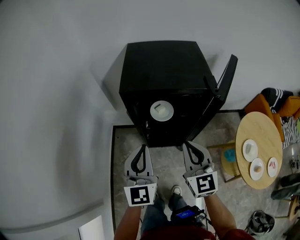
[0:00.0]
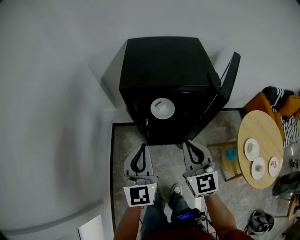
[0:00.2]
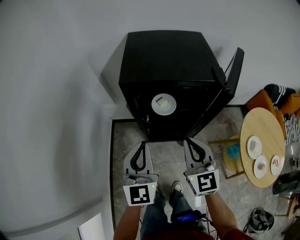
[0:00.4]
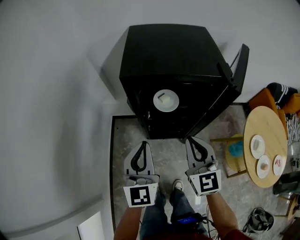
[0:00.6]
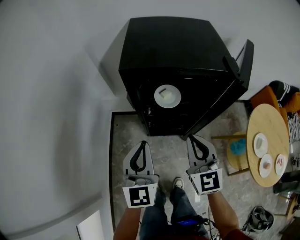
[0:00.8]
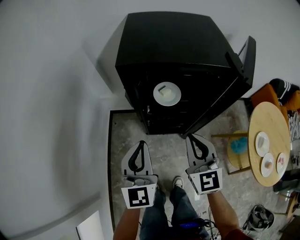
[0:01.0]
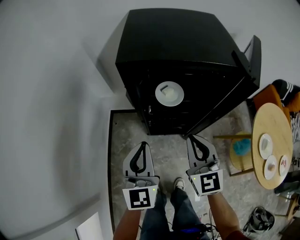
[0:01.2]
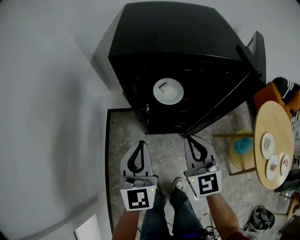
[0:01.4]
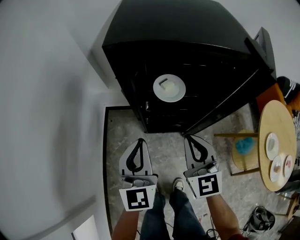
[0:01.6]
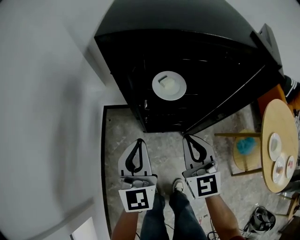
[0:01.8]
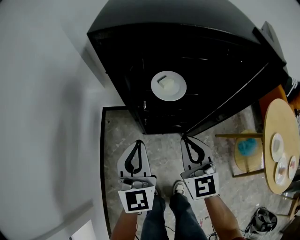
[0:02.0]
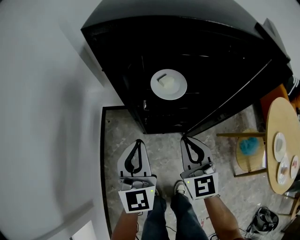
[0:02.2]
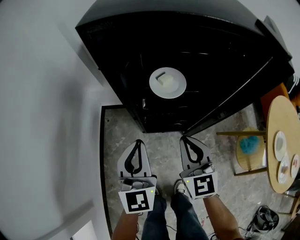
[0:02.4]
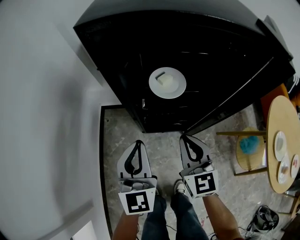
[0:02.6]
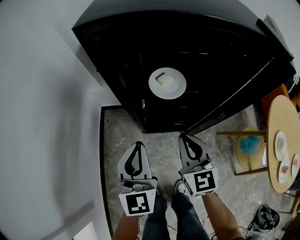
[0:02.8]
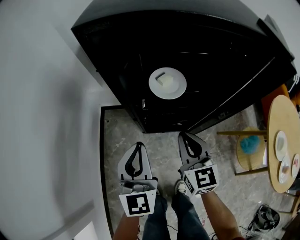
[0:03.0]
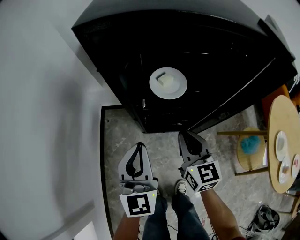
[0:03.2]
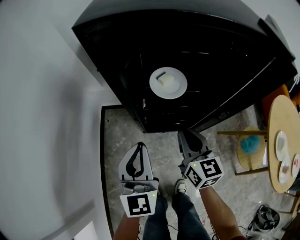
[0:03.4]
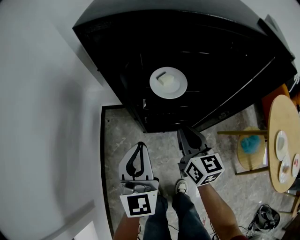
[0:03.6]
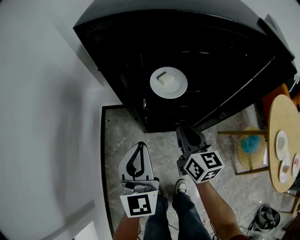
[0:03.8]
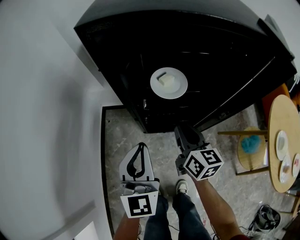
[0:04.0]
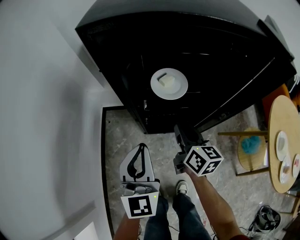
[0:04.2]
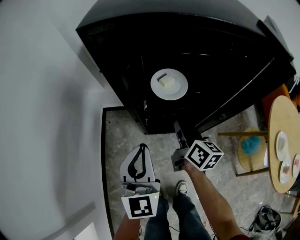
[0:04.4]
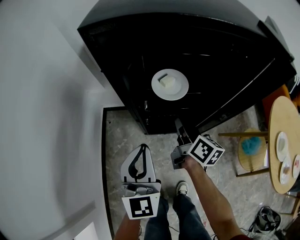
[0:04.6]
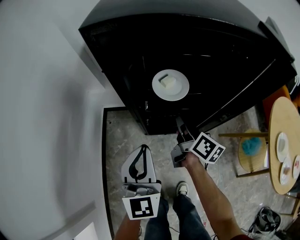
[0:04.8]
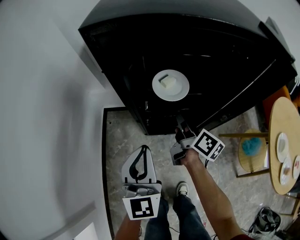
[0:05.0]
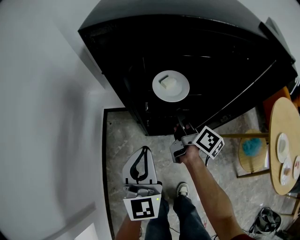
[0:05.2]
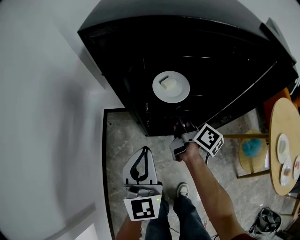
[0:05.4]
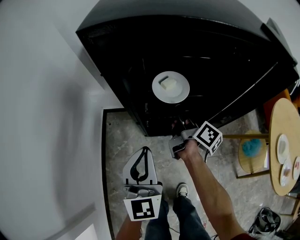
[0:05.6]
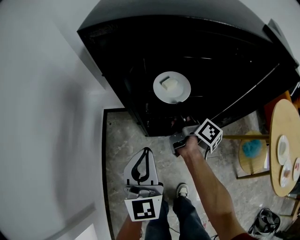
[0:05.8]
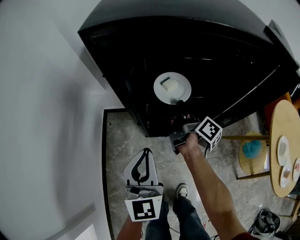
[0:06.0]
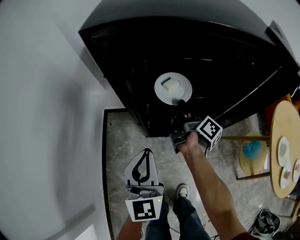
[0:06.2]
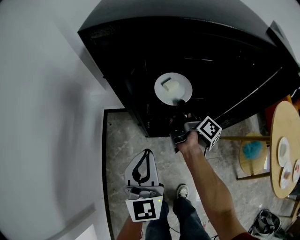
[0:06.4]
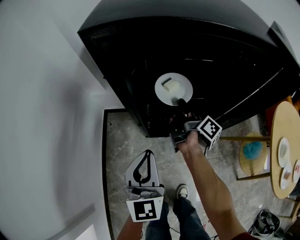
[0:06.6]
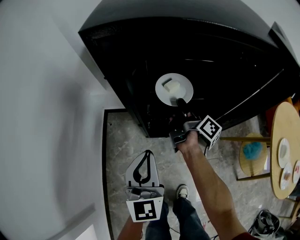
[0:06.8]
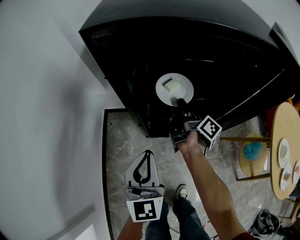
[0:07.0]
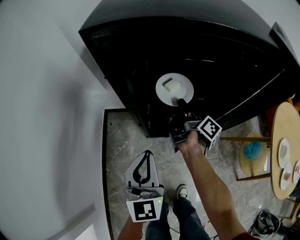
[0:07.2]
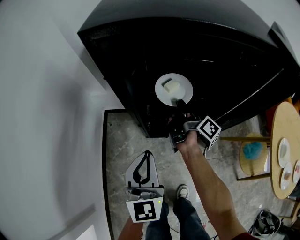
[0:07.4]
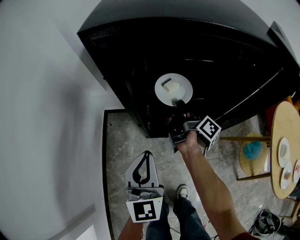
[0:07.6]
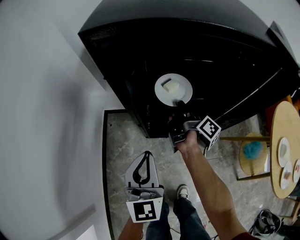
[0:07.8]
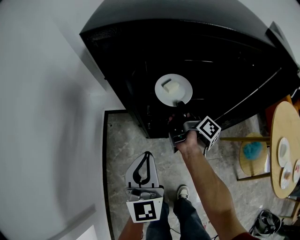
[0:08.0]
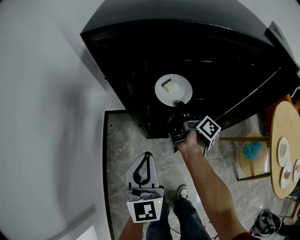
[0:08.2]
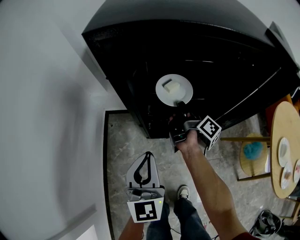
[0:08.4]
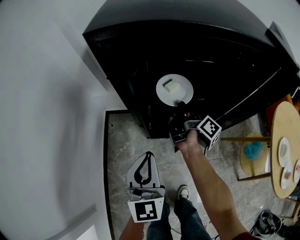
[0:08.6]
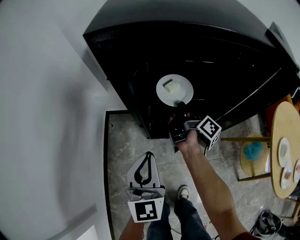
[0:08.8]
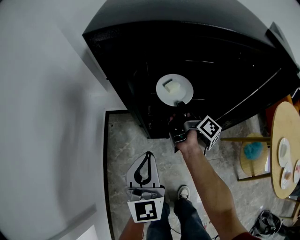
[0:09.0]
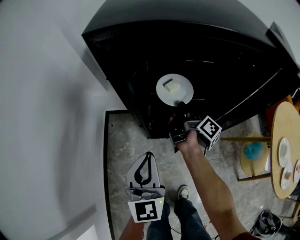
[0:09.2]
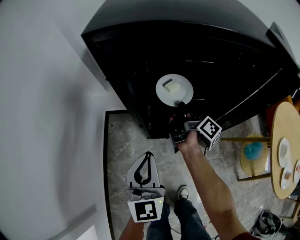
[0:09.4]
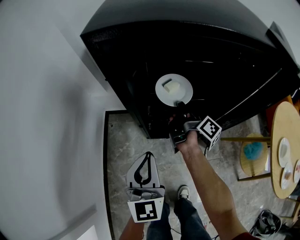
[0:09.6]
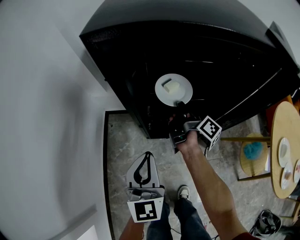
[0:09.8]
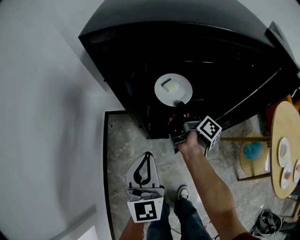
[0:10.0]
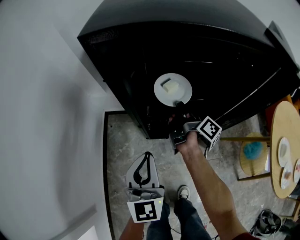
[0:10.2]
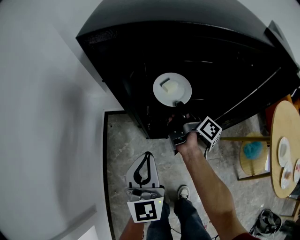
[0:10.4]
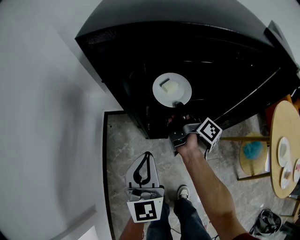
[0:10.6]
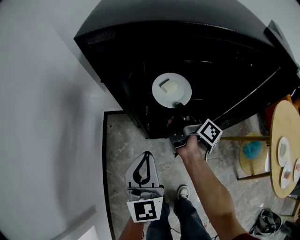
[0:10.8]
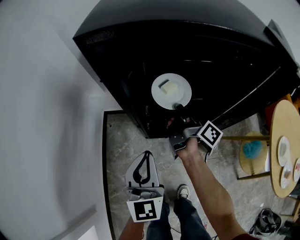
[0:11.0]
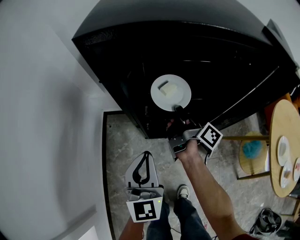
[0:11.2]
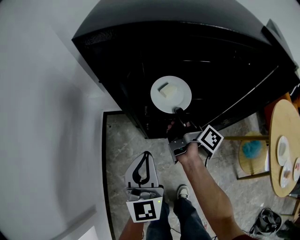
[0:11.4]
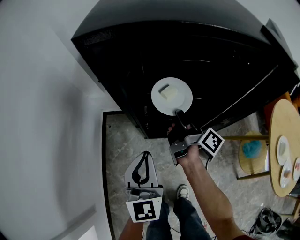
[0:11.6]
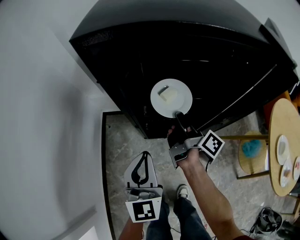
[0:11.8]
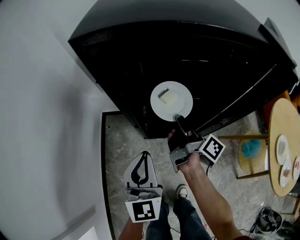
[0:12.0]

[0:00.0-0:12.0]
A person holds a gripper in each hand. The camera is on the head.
0:00.0 to 0:01.6: The grippers both shift downward by approximately 15 cm.
0:01.6 to 0:03.0: The right gripper moves downward, some 10 cm, while the left gripper goes approximately 5 cm downward.
0:03.0 to 0:04.4: The right gripper heads forward, covering about 5 cm, and rotates around the line of its fingers by approximately 40 degrees, clockwise from behind.
0:04.4 to 0:06.0: The right gripper is displaced forward by some 10 cm, and rotates some 40 degrees.
0:06.0 to 0:07.6: The grippers move only a little.
0:07.6 to 0:09.0: Both grippers stay about where they are.
0:09.0 to 0:10.4: The grippers make only small movements.
0:10.4 to 0:12.0: The right gripper travels backward by approximately 5 cm.

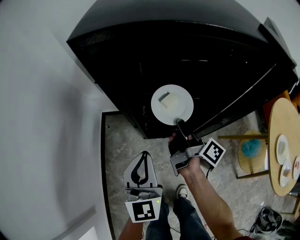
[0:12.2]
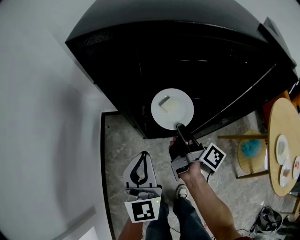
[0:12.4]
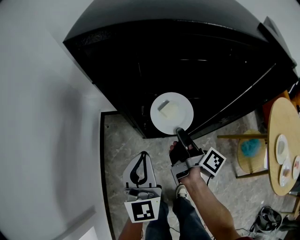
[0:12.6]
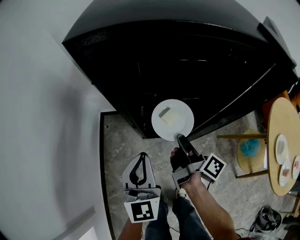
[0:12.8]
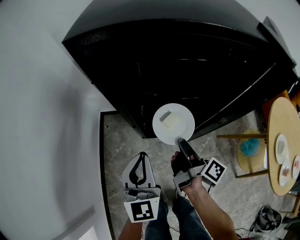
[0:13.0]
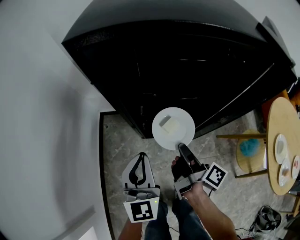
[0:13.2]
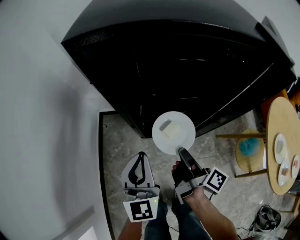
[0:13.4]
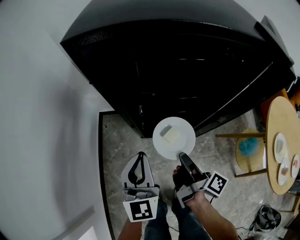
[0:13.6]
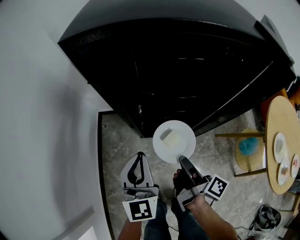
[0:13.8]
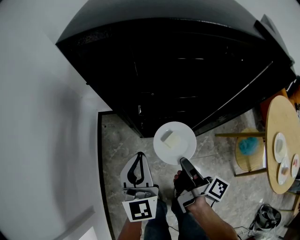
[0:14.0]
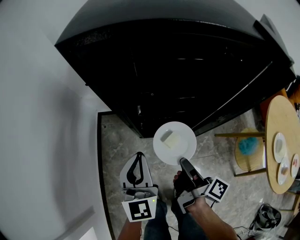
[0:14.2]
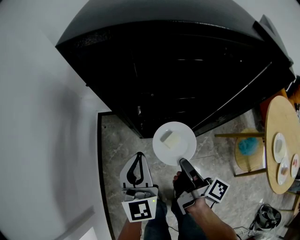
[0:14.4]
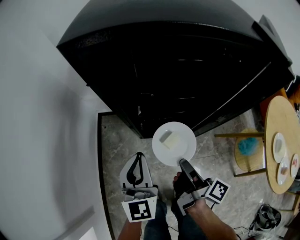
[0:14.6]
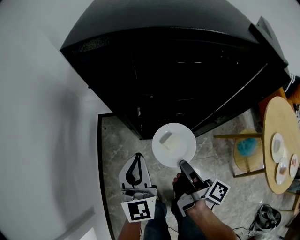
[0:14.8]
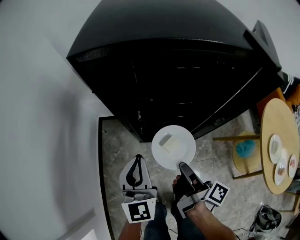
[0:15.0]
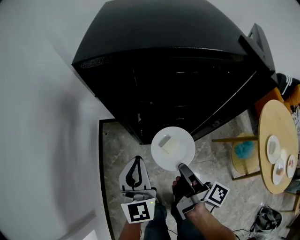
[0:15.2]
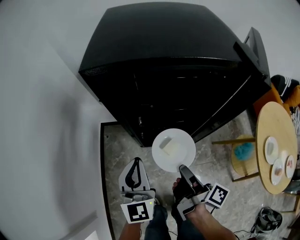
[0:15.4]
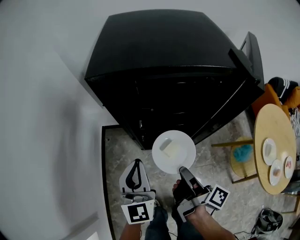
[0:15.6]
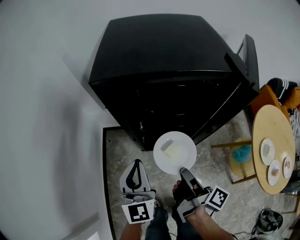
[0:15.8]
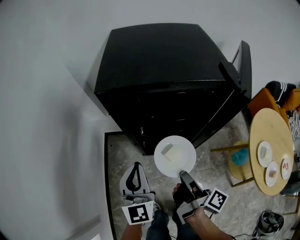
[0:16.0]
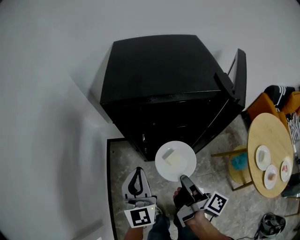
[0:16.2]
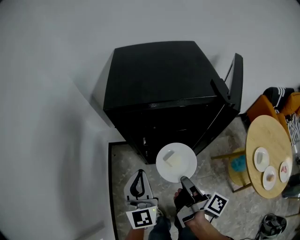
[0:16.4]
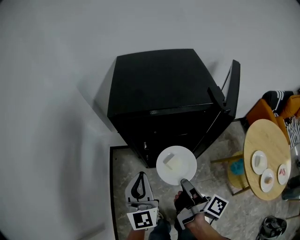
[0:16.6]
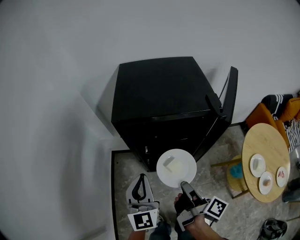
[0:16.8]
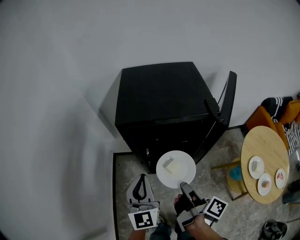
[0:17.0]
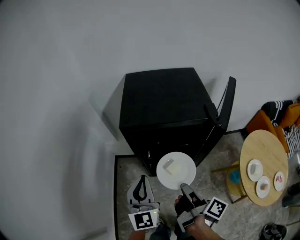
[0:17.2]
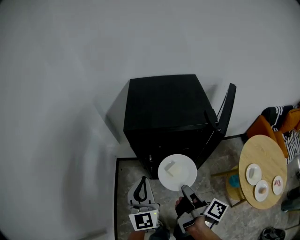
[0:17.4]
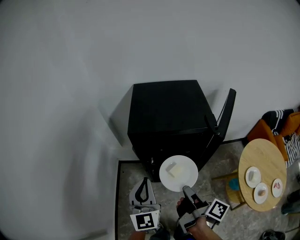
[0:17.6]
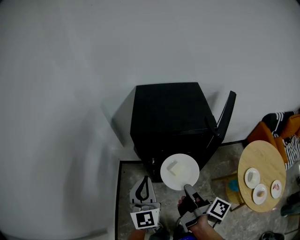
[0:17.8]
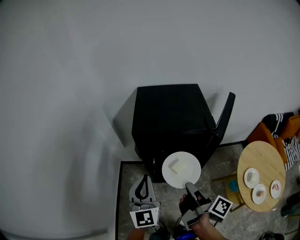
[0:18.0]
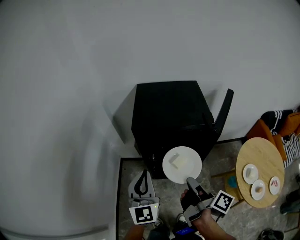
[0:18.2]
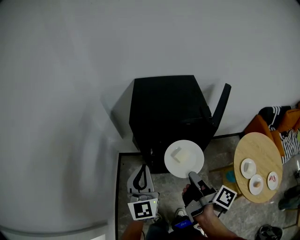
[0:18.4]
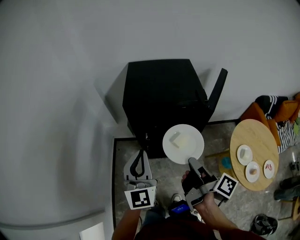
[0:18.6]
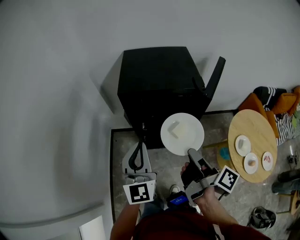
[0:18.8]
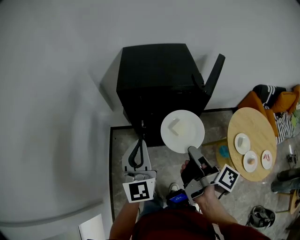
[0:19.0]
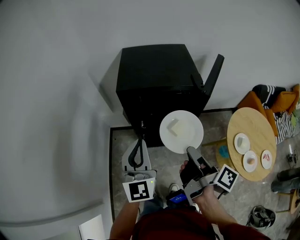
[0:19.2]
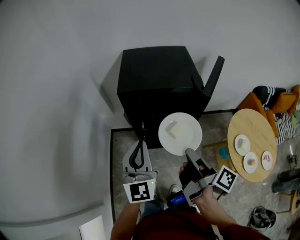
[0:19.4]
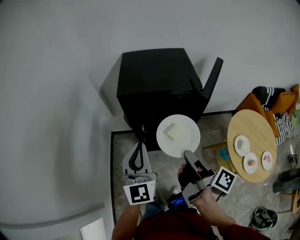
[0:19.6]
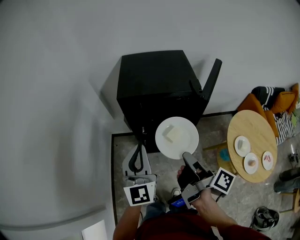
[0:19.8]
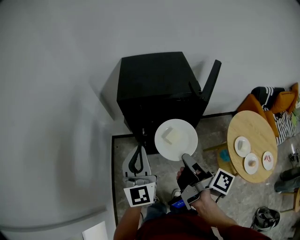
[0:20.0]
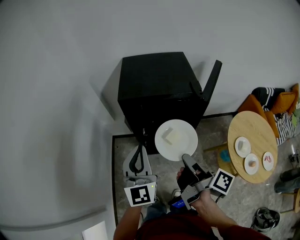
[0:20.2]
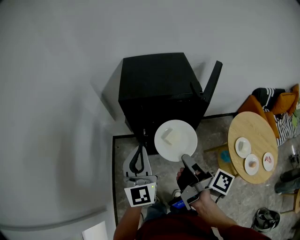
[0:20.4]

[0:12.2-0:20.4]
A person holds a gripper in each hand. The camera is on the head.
0:12.2 to 0:13.8: The right gripper goes about 15 cm backward.
0:13.8 to 0:15.4: Both grippers move upward, roughly 5 cm.
0:15.4 to 0:17.2: The two grippers go roughly 20 cm upward.
0:17.2 to 0:18.8: The grippers both shift upward and backward by roughly 10 cm.
0:18.8 to 0:20.4: The grippers move only a little.

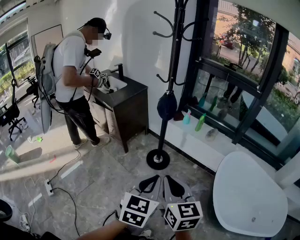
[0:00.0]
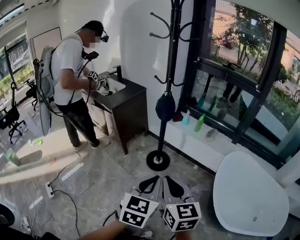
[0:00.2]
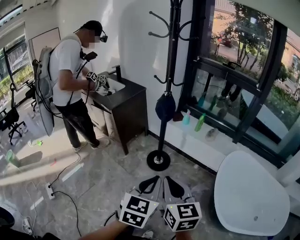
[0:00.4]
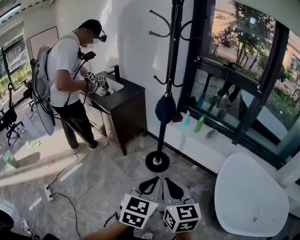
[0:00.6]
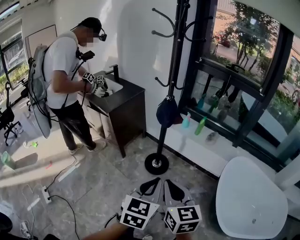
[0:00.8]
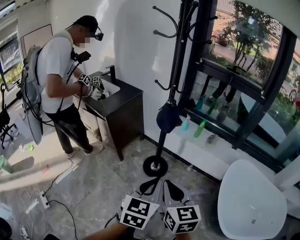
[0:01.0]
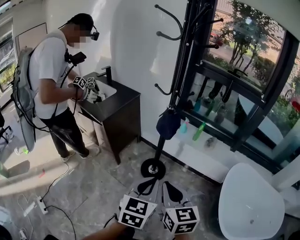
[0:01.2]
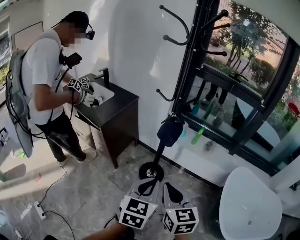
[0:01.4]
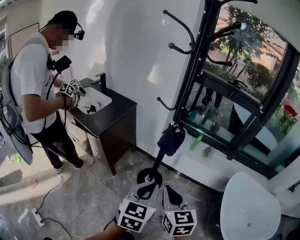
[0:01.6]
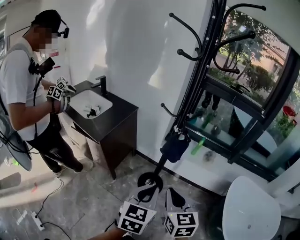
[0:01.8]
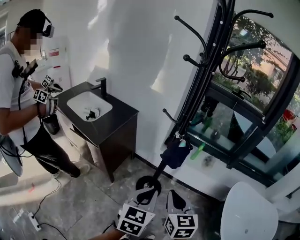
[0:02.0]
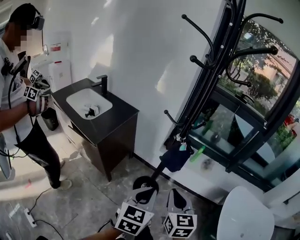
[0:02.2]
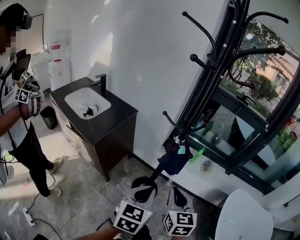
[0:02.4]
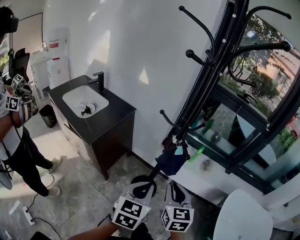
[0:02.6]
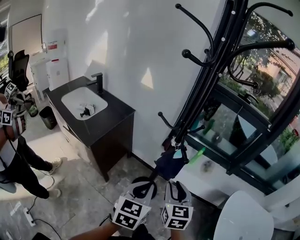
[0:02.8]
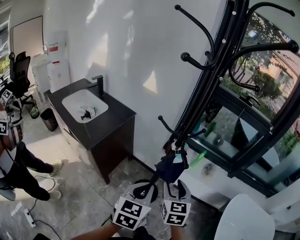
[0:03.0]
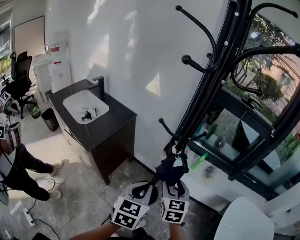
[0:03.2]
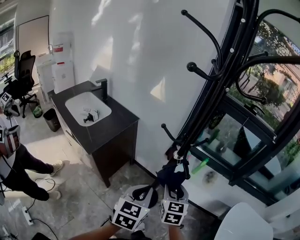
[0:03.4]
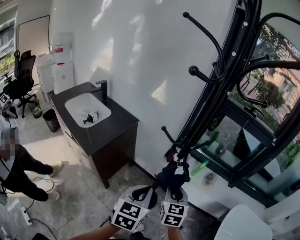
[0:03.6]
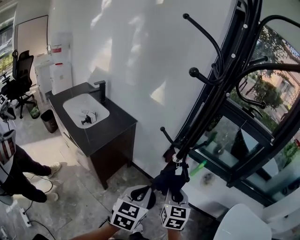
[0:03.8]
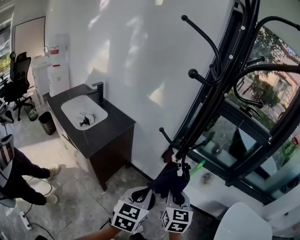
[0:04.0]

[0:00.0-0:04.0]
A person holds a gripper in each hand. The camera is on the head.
0:00.0 to 0:01.4: Both grippers travel together forward, approximately 20 cm.
0:01.4 to 0:02.6: The two grippers go about 15 cm forward.
0:02.6 to 0:04.0: The two grippers go approximately 5 cm forward. The right gripper opens, then closes once more.
